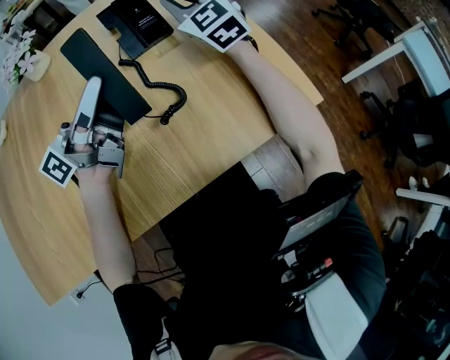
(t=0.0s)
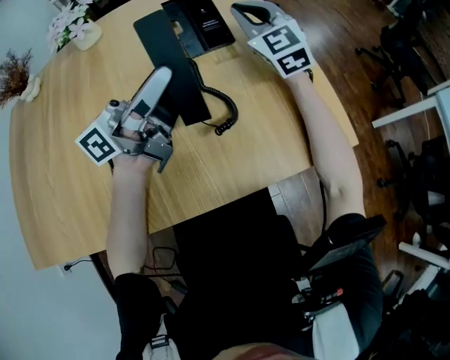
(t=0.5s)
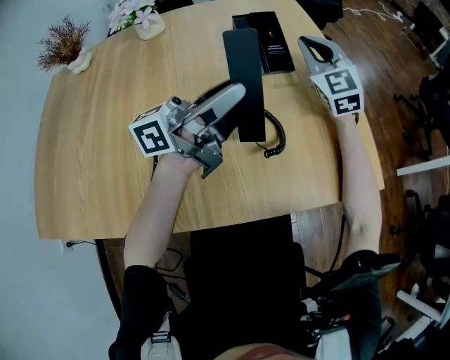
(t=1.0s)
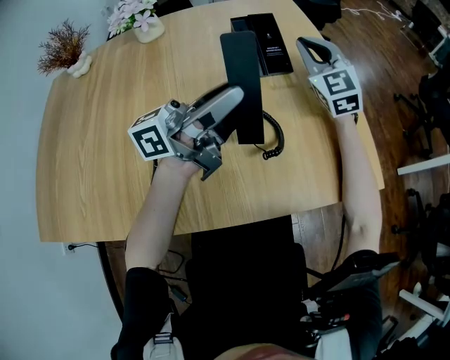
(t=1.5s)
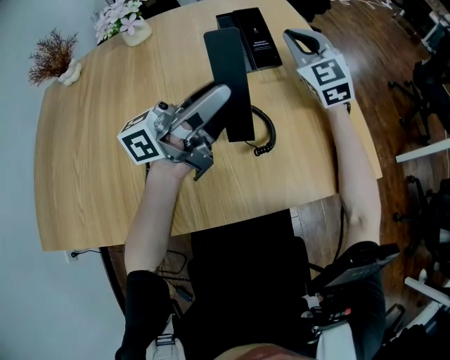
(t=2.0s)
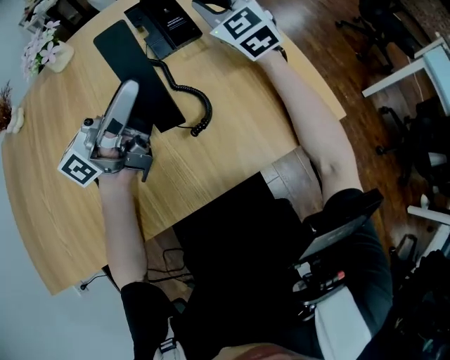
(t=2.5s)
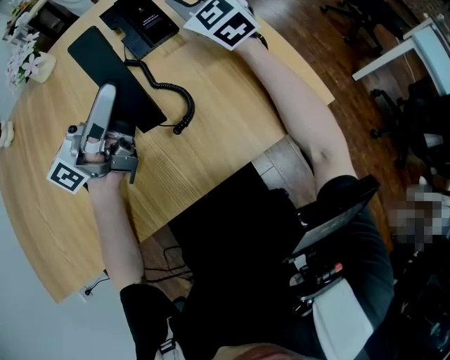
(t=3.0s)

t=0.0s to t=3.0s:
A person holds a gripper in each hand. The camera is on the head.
t=0.0s to t=1.5s: The grippers make only small movements.
t=1.5s to t=3.0s: The two grippers keep their place.

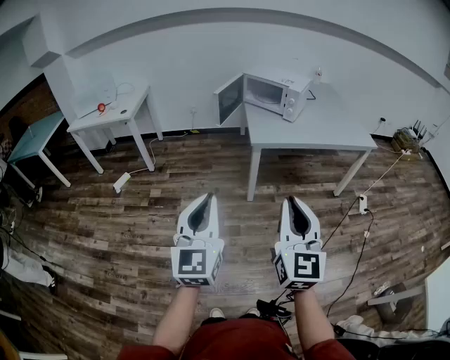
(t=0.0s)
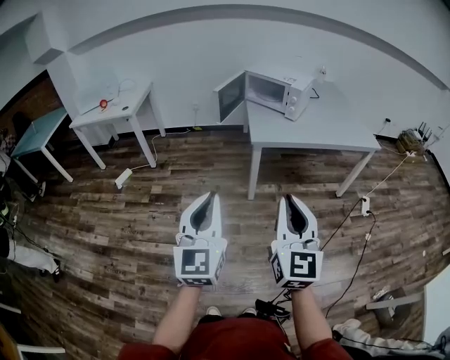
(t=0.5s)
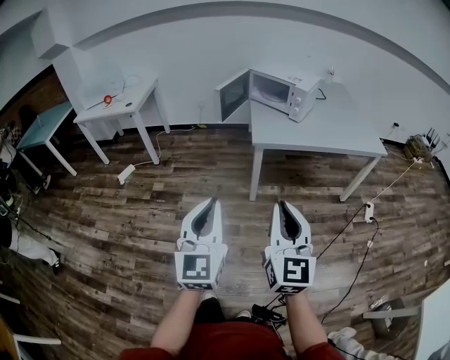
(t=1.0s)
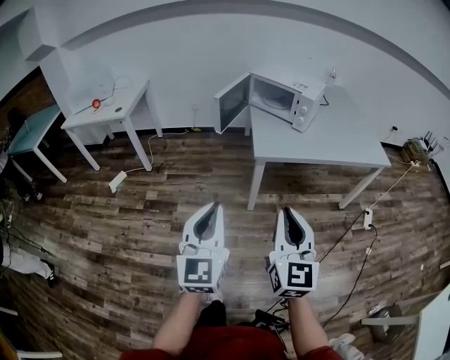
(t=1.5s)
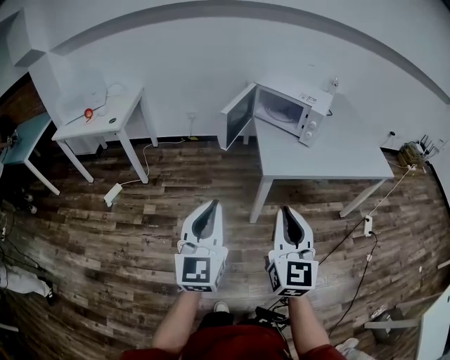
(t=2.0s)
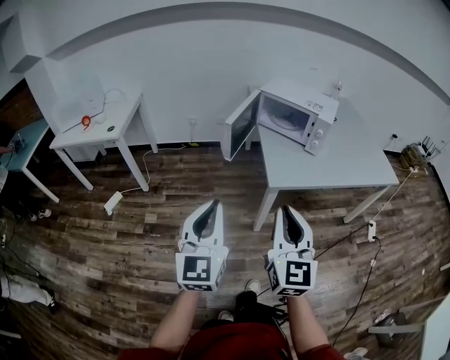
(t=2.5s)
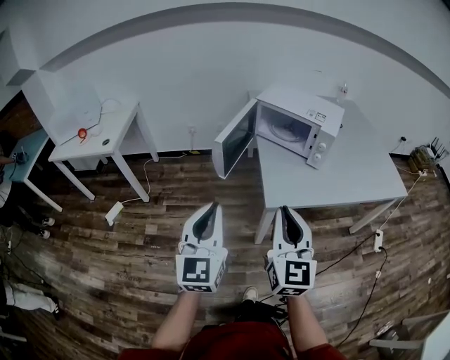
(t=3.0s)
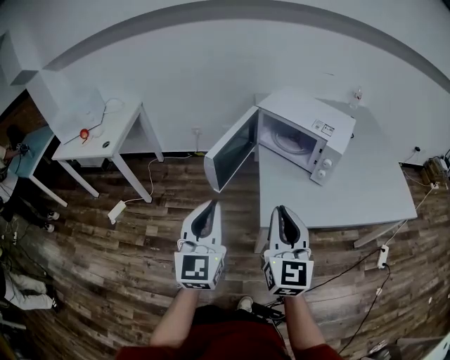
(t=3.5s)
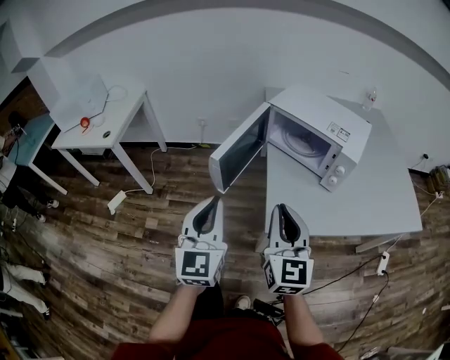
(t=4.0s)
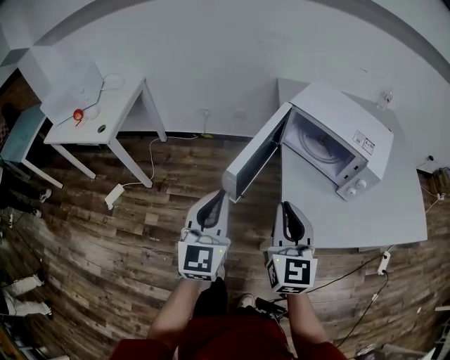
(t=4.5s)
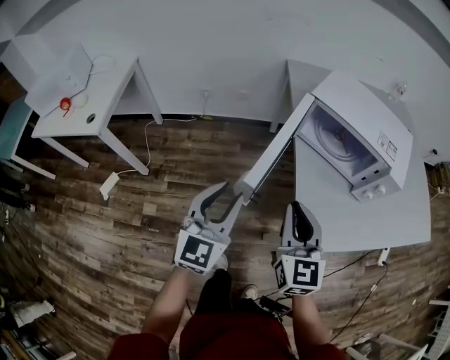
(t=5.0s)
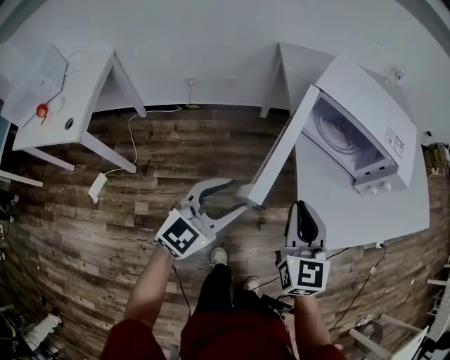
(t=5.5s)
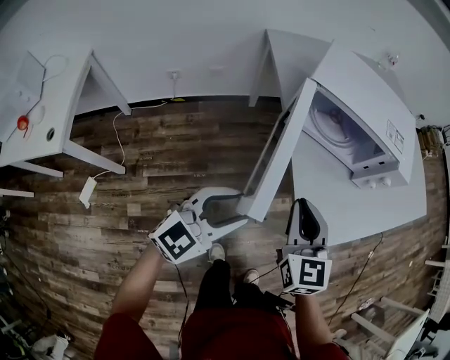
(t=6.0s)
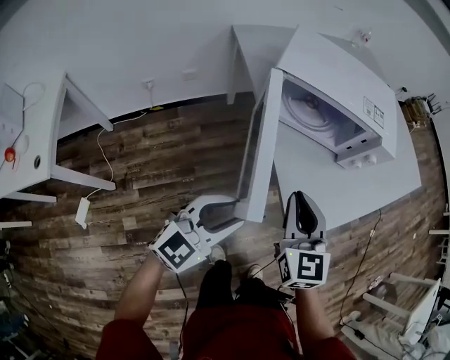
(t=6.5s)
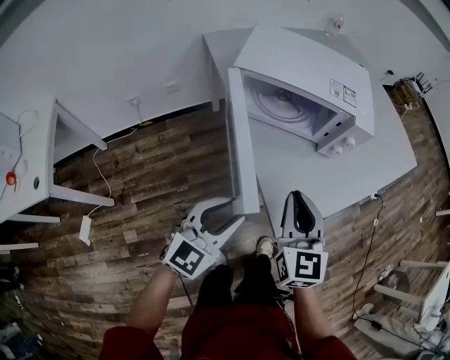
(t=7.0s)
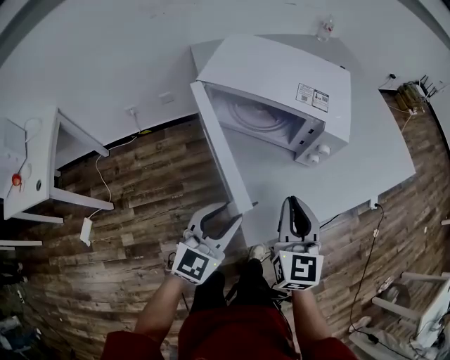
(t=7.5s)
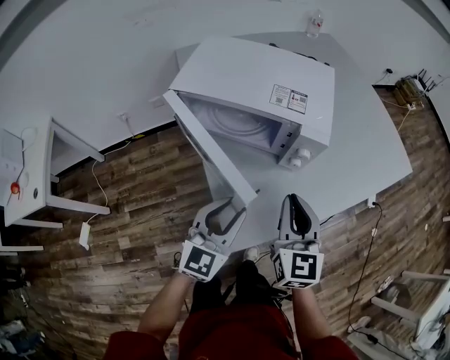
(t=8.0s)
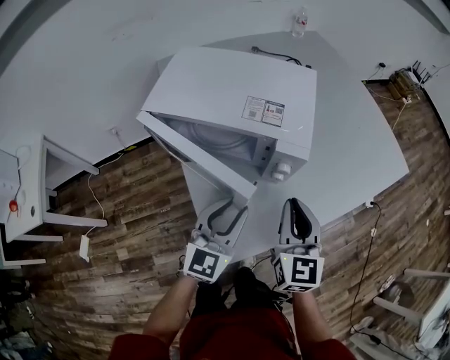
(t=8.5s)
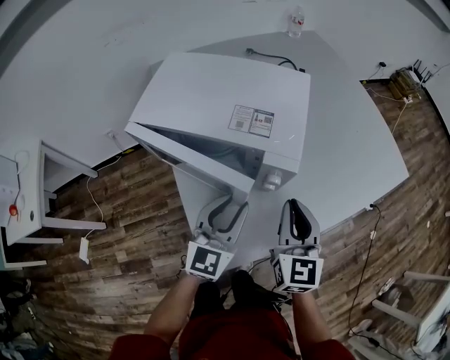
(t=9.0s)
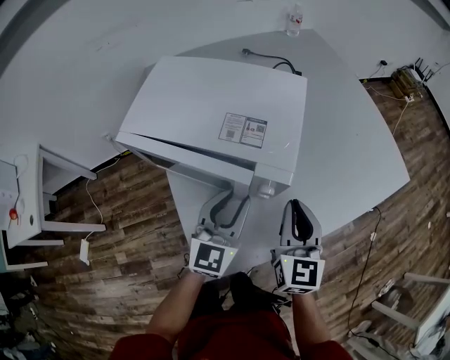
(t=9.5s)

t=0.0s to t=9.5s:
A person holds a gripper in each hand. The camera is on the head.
t=0.0s to t=2.0s: Both grippers travel together forward, about 25 cm.
t=2.0s to t=4.0s: Both grippers travel together forward, some 35 cm.
t=4.0s to t=5.5s: The left gripper shifts by roughly 25 cm, swivels approximately 50 degrees, and opens. Meanwhile the right gripper moves roughly 25 cm.
t=5.5s to t=7.5s: The grippers both shift to the right and forward by about 20 cm.
t=7.5s to t=9.5s: Both grippers travel together forward and to the right, about 25 cm.

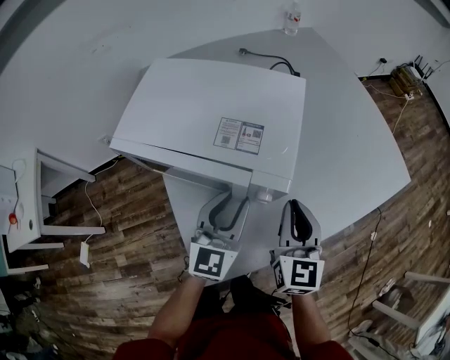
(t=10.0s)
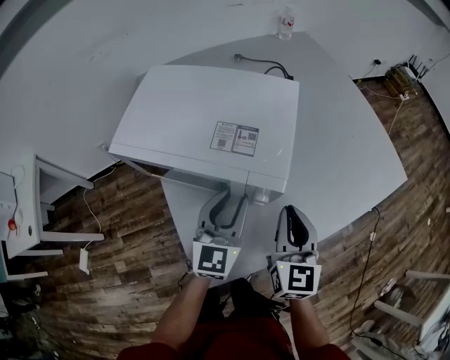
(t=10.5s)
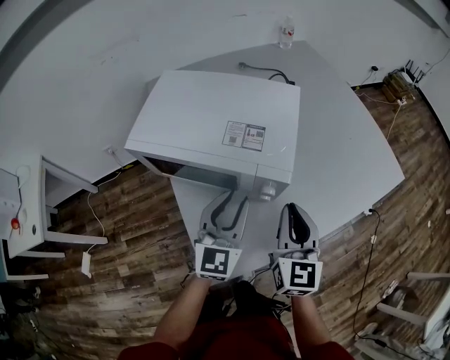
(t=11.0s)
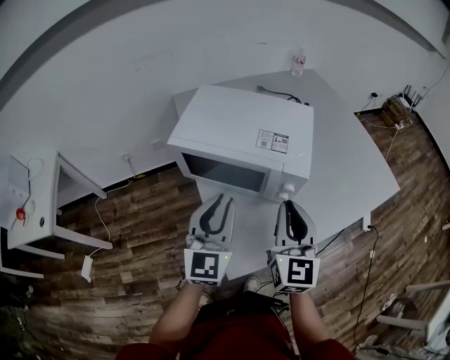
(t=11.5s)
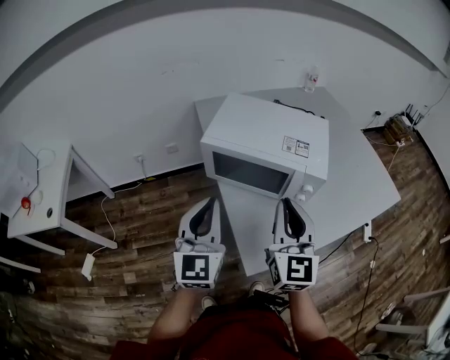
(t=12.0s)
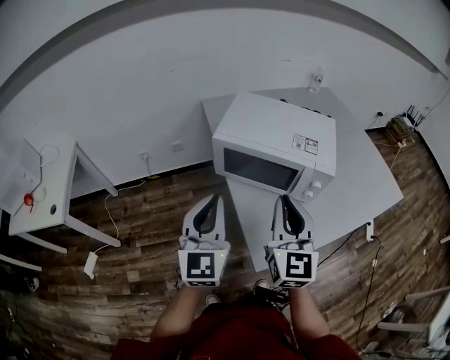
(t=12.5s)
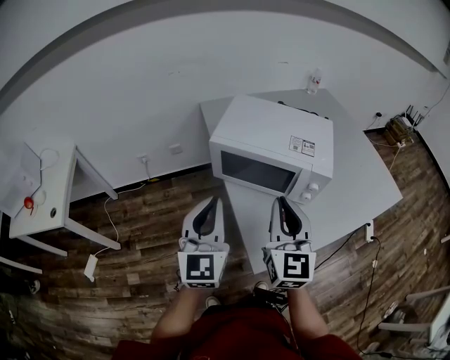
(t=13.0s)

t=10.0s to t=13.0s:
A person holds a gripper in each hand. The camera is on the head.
t=10.0s to t=11.5s: The left gripper travels to the left, backward and upward by about 20 cm, while the right gripper shifts approximately 15 cm upward, to the left and backward.
t=11.5s to t=13.0s: The left gripper moves to the left and backward, about 15 cm. The right gripper is displaced to the left by some 15 cm.

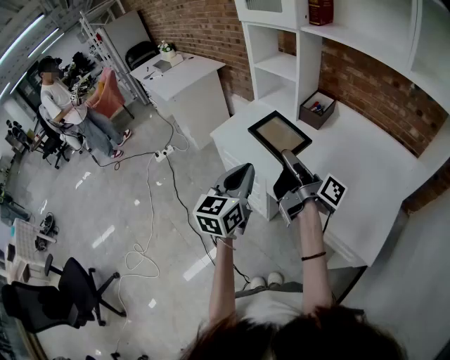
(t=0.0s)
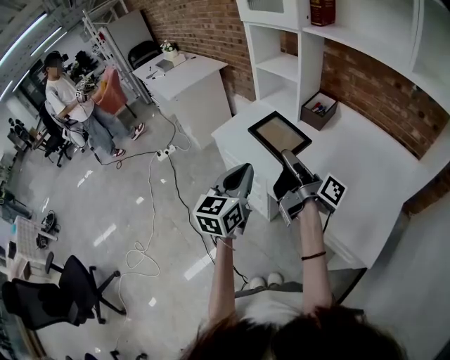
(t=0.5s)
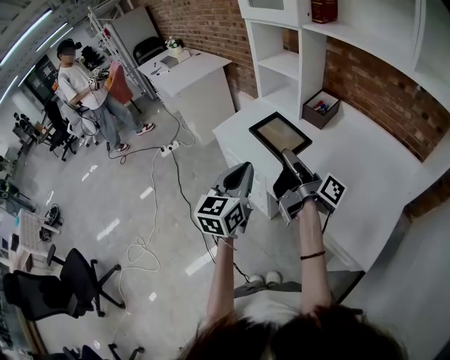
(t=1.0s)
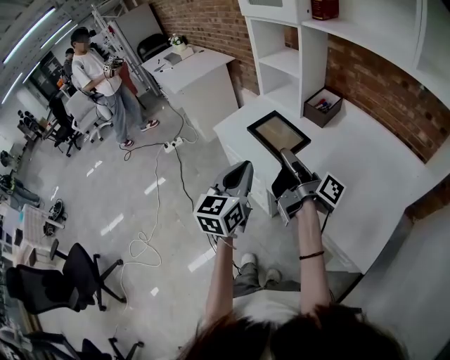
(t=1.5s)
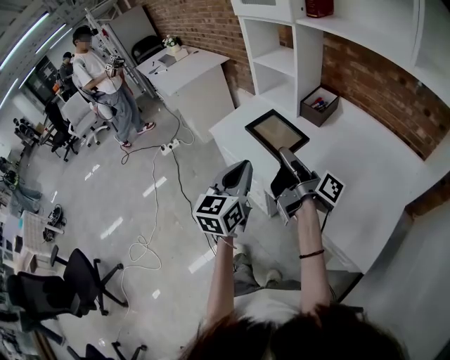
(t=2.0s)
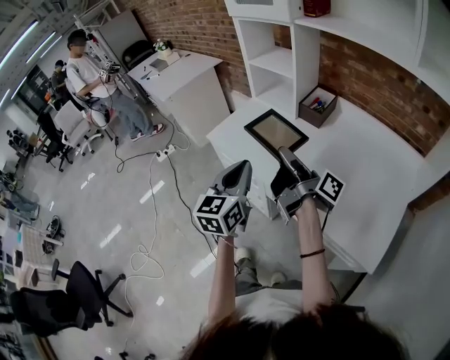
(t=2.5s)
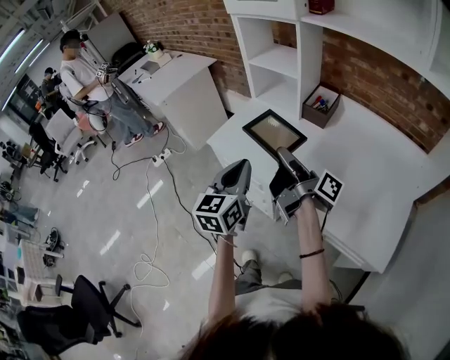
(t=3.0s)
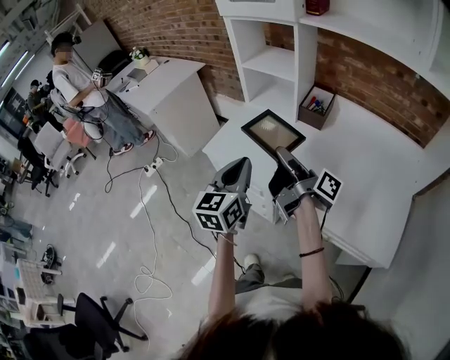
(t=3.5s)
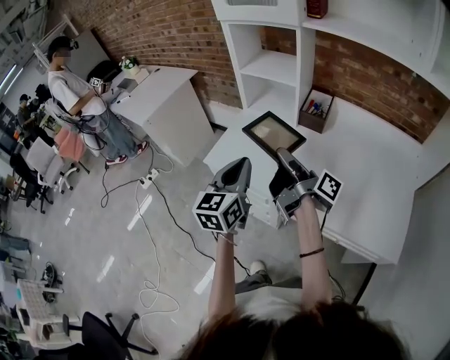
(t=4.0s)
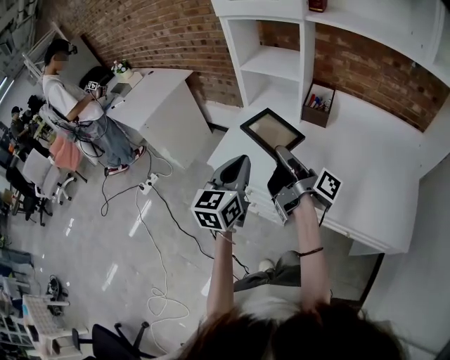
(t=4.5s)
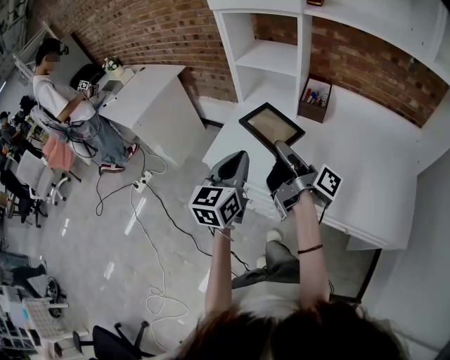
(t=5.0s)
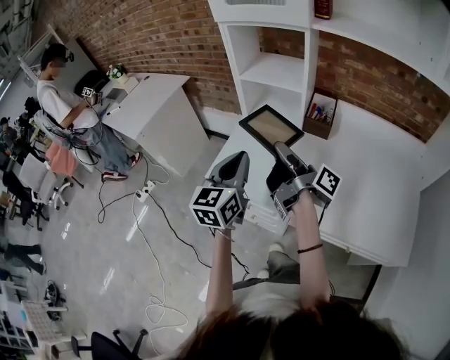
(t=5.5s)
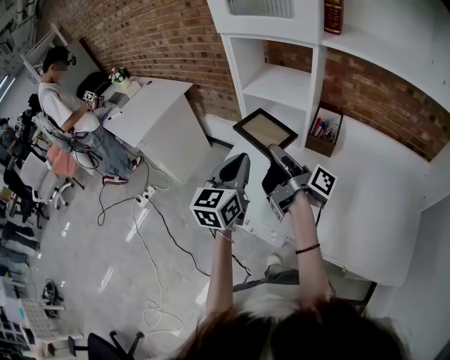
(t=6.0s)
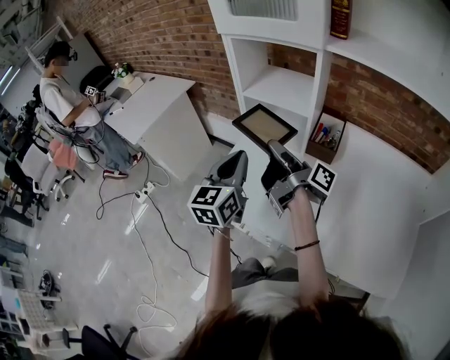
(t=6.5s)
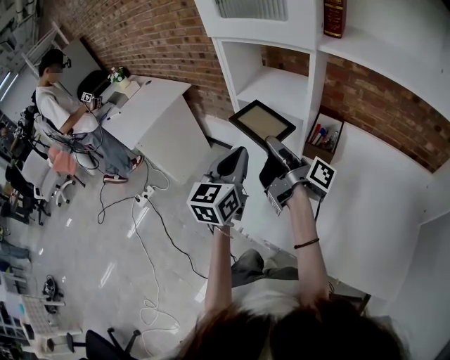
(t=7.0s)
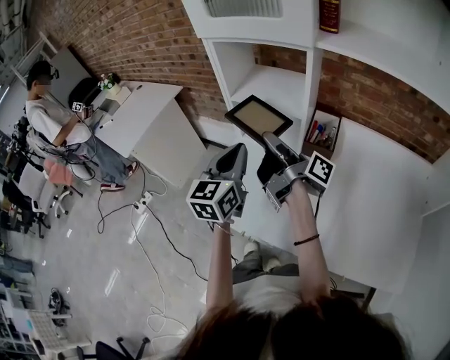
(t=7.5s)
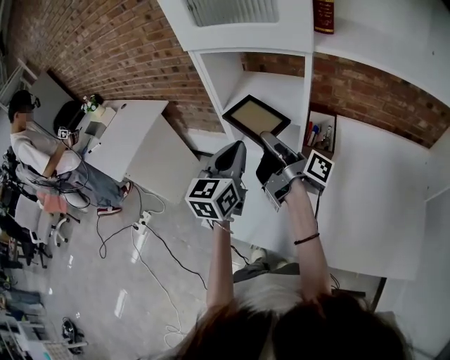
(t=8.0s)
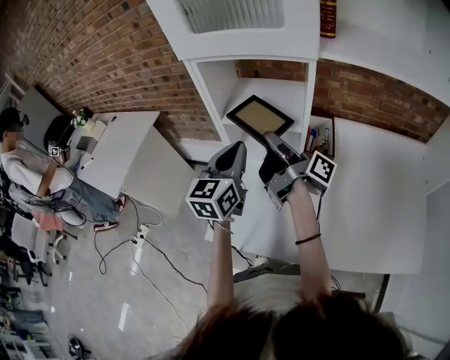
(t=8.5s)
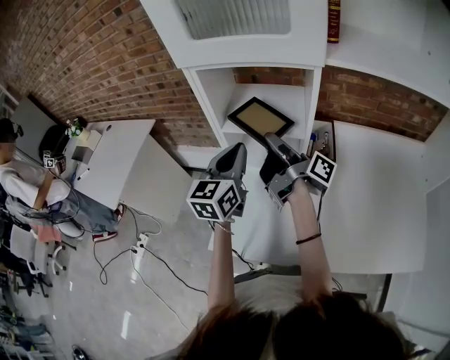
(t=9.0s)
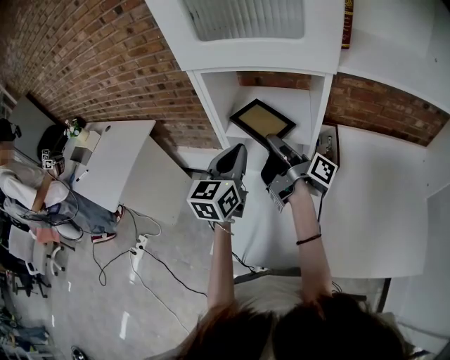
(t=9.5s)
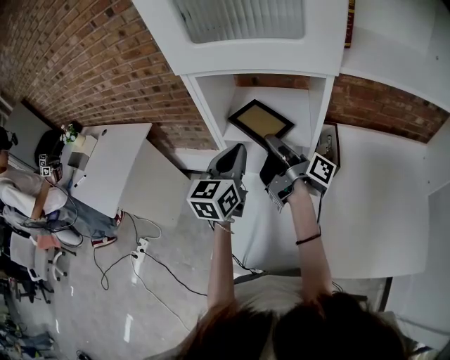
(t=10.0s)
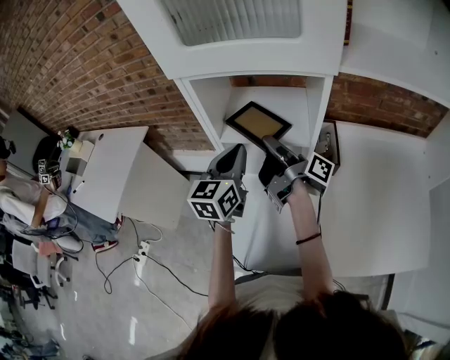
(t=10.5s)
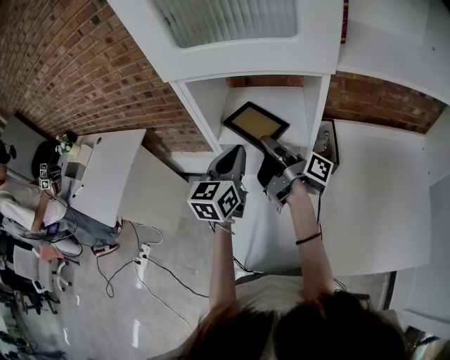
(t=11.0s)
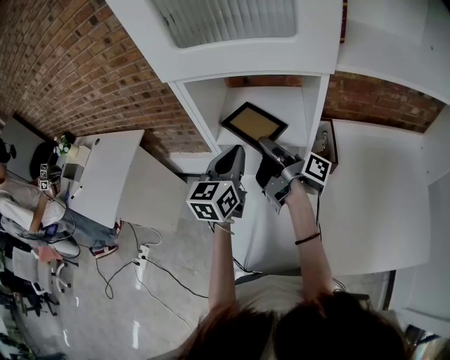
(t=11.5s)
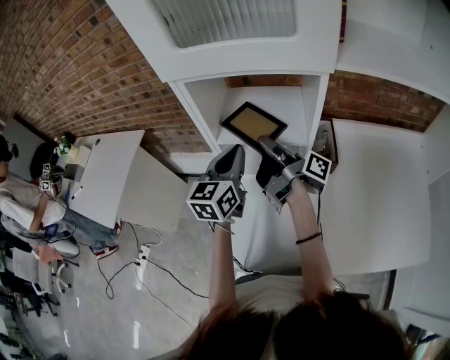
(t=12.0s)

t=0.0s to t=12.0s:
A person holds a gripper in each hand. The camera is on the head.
t=2.0s to t=4.0s: The left gripper changes place by roughly 20 cm.
t=4.0s to t=6.0s: The left gripper ends up approximately 15 cm from where it was.
t=6.0s to t=8.0s: The left gripper ends up about 15 cm from where it was.
t=8.0s to t=10.0s: The left gripper moves roughly 10 cm.
